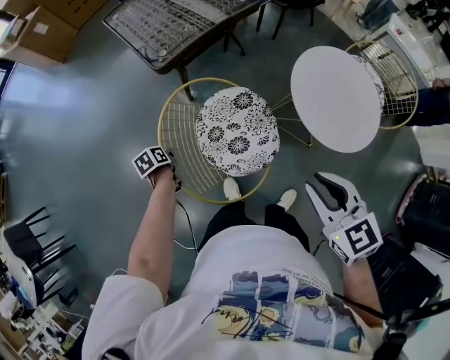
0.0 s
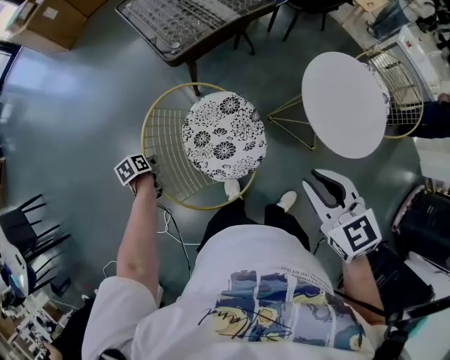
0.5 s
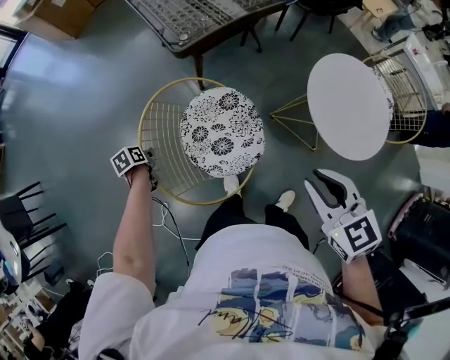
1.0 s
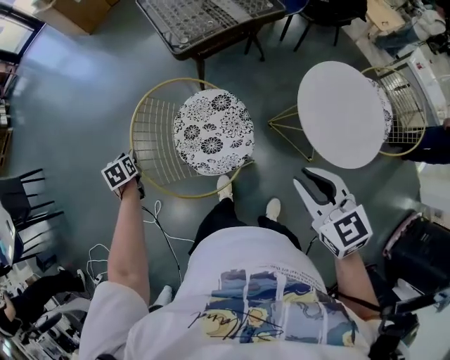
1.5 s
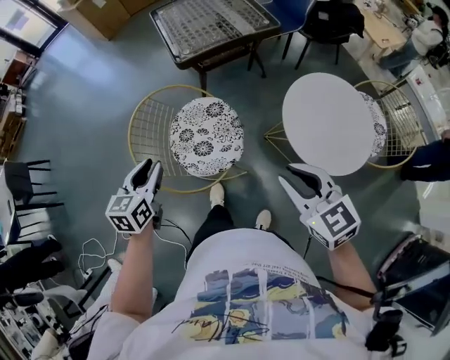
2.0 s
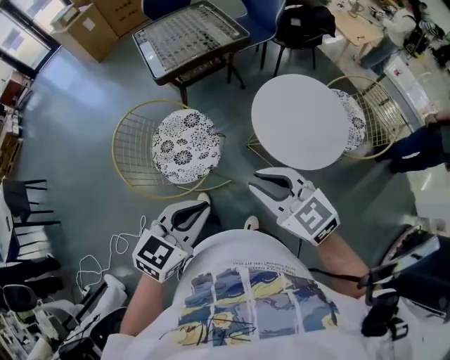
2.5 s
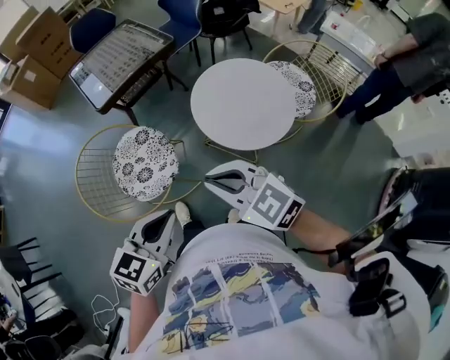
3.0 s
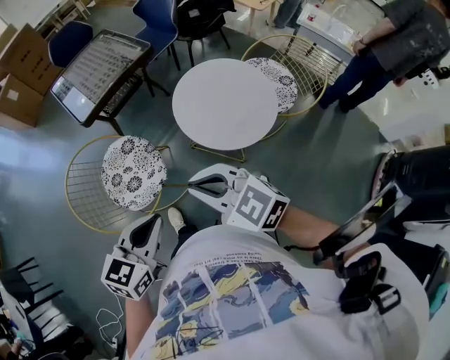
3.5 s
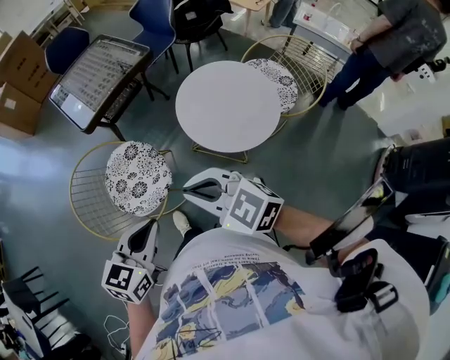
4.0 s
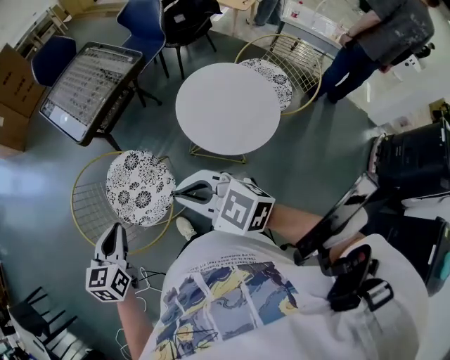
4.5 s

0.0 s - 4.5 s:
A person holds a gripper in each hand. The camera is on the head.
0.0 s - 2.0 s: The left gripper moves upward, approximately 30 cm, angles its fingers upward, by some 30 degrees, and opens up. Meanwhile the right gripper shifts by about 10 cm, and rotates roughly 20 degrees.
2.0 s - 4.5 s: The left gripper travels to the right and back again, about 30 cm each way, changes its angle by about 20 degrees, and closes its fingers.

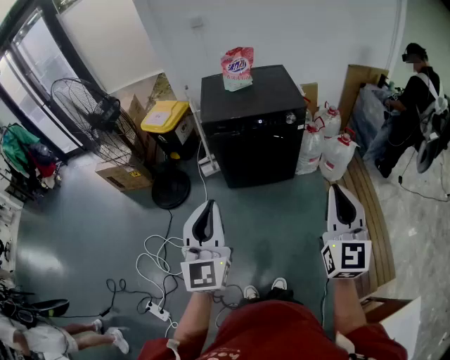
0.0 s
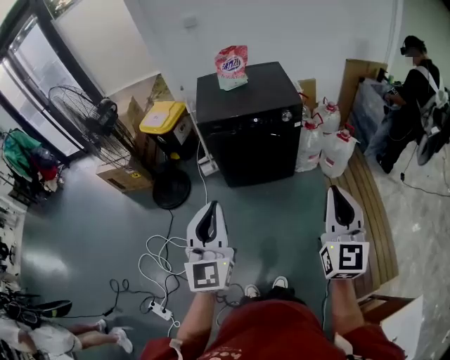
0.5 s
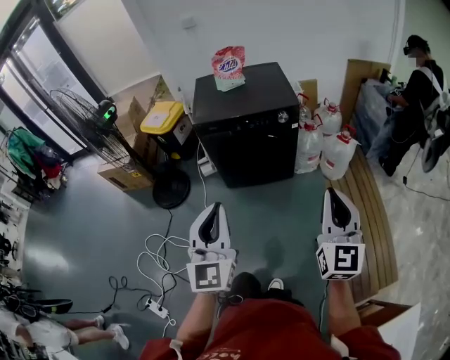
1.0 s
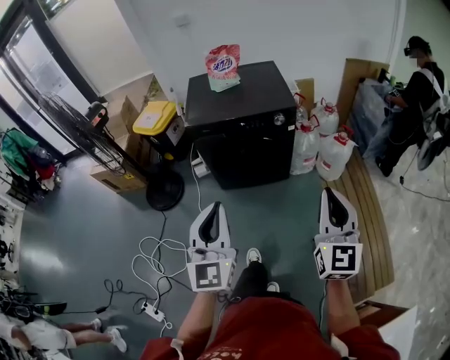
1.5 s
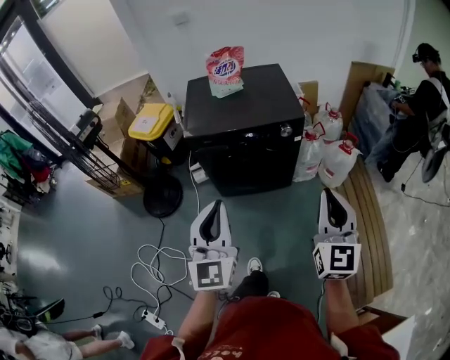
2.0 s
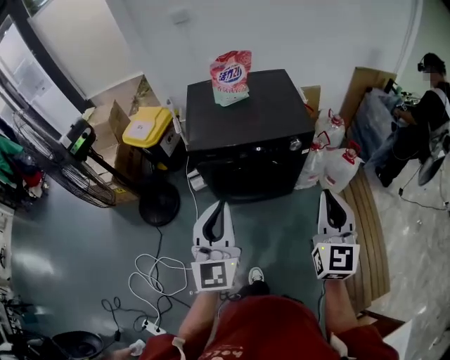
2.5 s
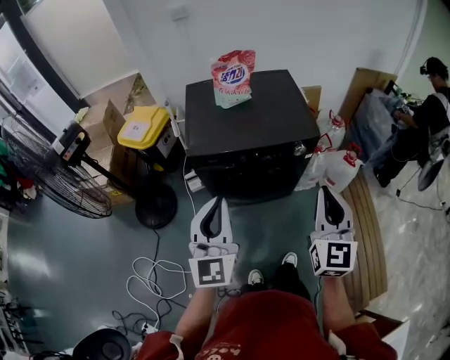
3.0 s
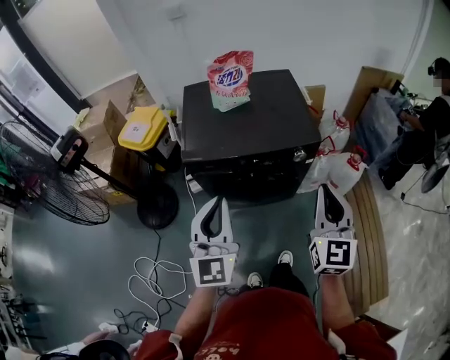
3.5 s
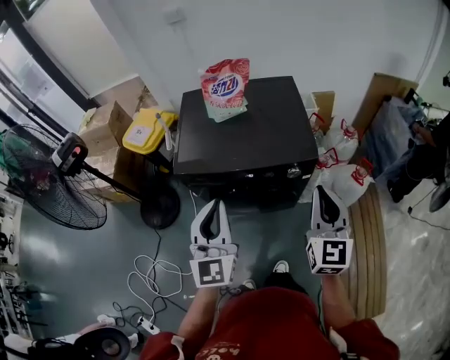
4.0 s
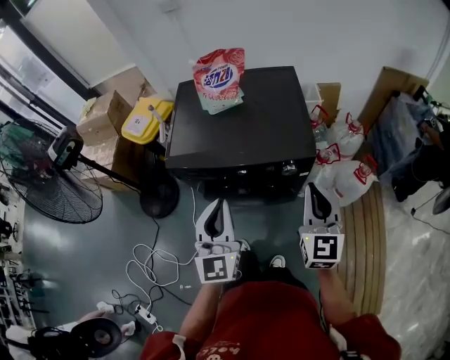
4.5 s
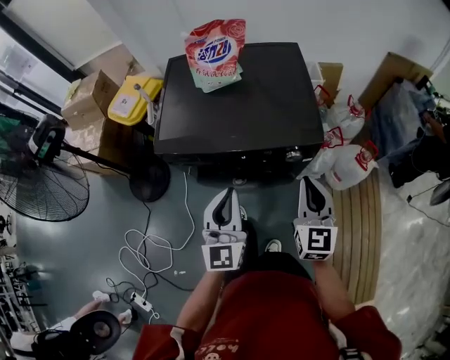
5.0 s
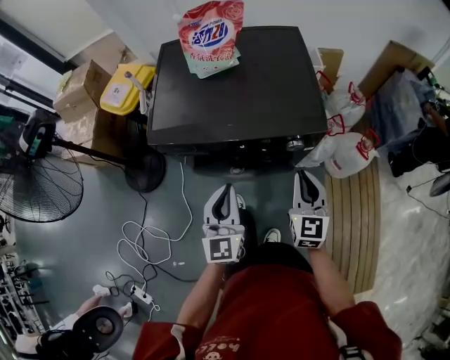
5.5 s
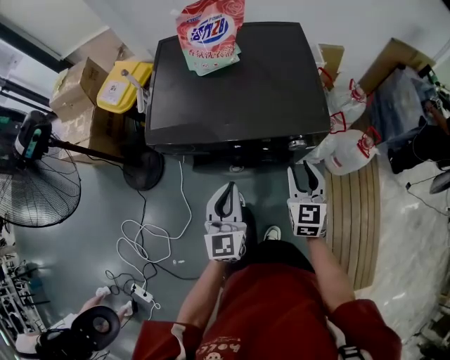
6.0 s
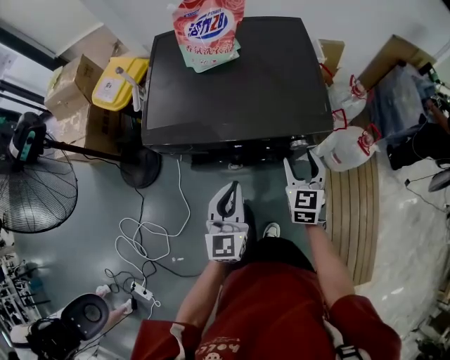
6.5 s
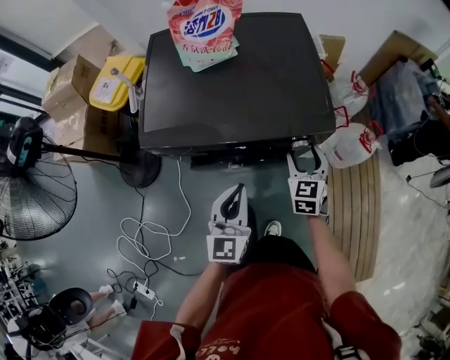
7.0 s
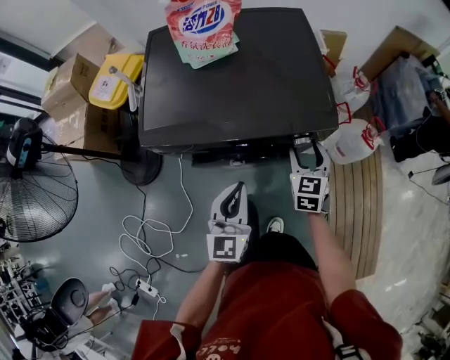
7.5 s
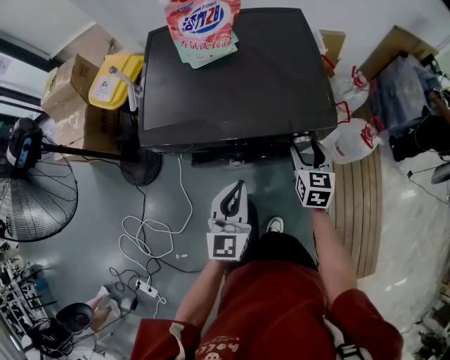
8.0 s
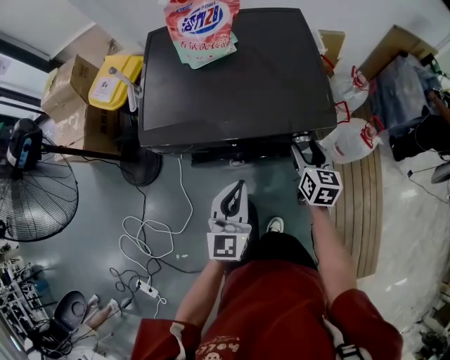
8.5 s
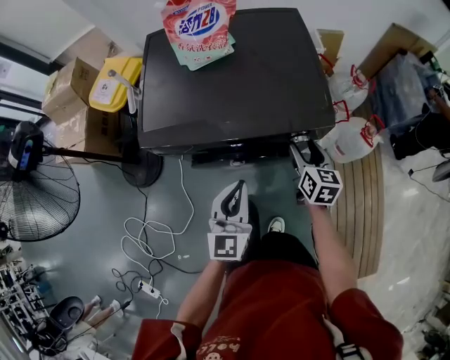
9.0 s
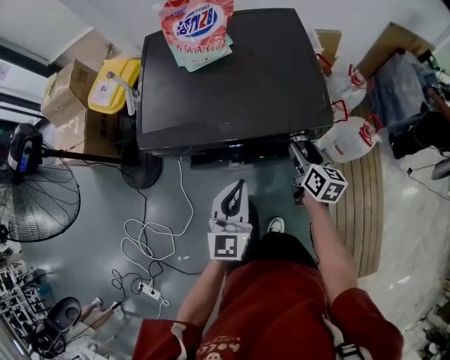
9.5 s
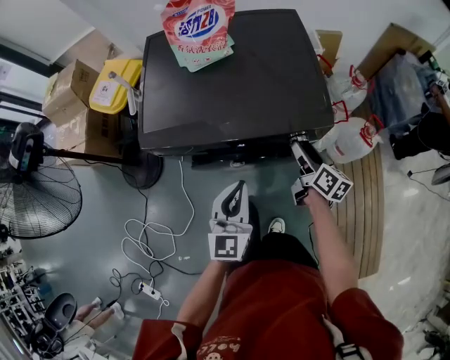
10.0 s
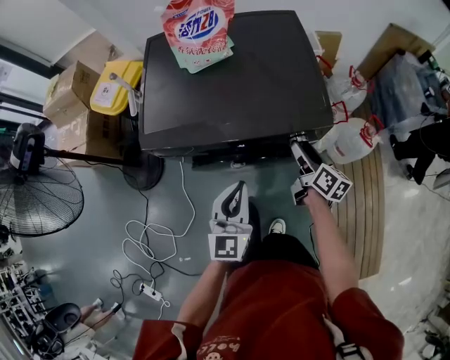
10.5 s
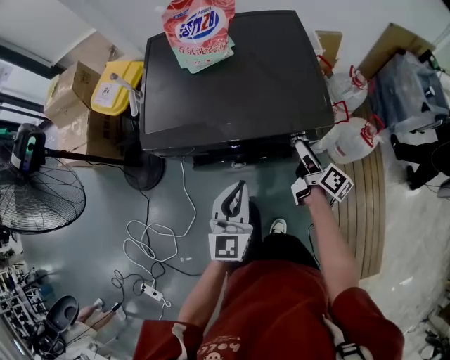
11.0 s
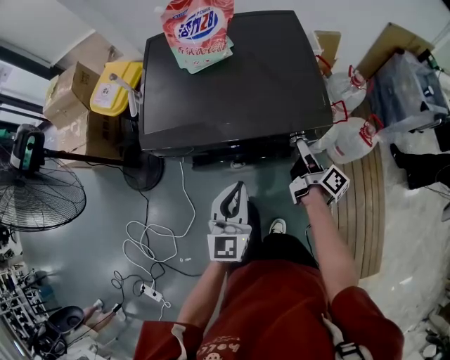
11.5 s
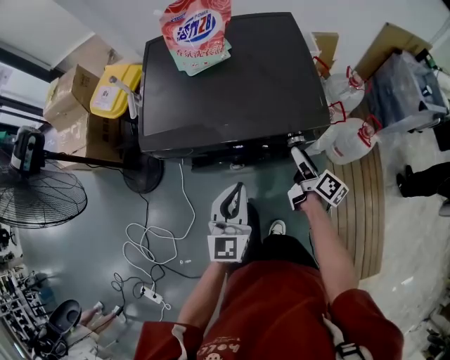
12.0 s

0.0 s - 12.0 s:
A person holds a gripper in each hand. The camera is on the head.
0.0 s - 2.0 s: The right gripper moves forward, some 20 cm; the left gripper moves forward and to the right, roughly 20 cm.
2.0 s - 4.0 s: The two grippers go some 30 cm forward.
4.0 s - 6.0 s: The left gripper moves downward, about 25 cm. The right gripper travels downward and forward by about 30 cm, and opens its fingers.
6.0 s - 8.0 s: The right gripper is displaced forward and downward by some 10 cm.
8.0 s - 10.0 s: The right gripper twists about 40 degrees clockwise, seen from behind.

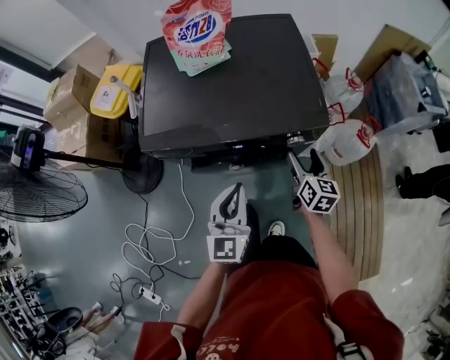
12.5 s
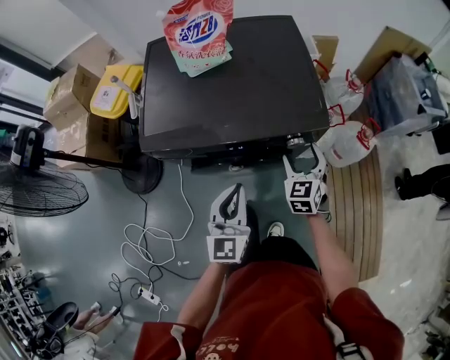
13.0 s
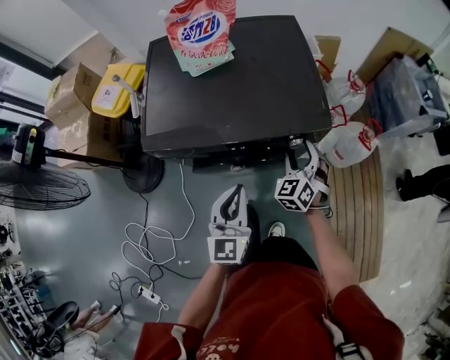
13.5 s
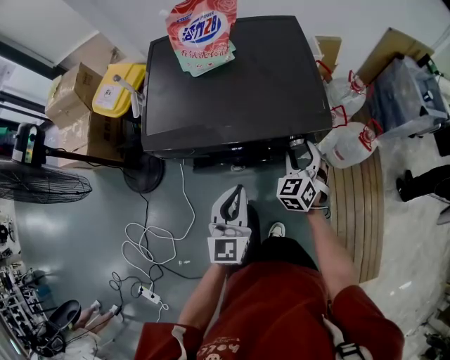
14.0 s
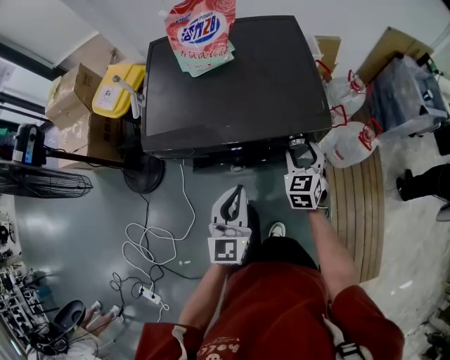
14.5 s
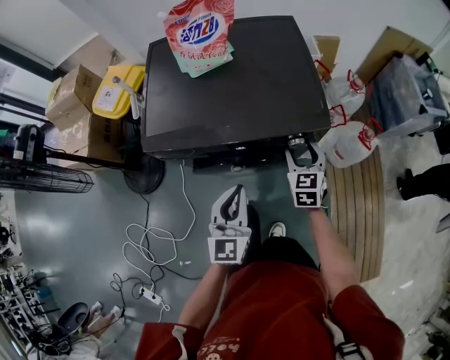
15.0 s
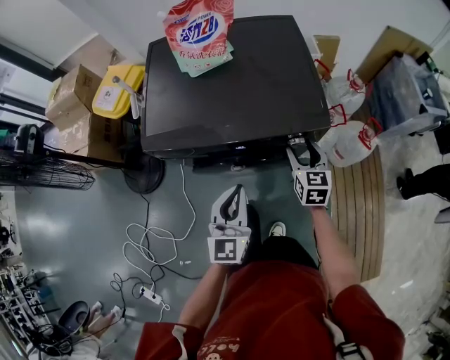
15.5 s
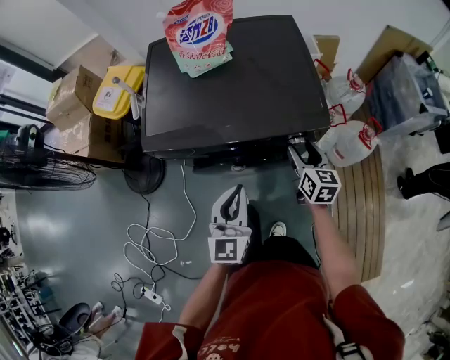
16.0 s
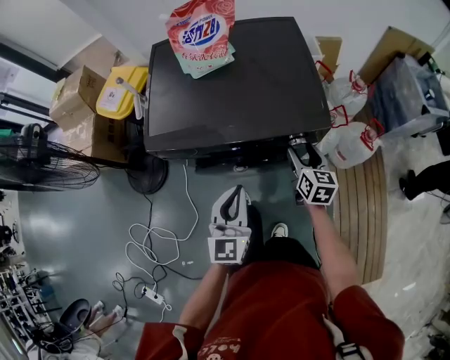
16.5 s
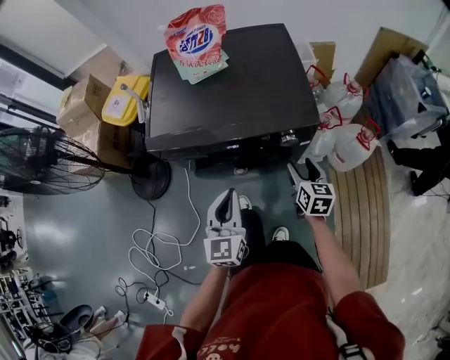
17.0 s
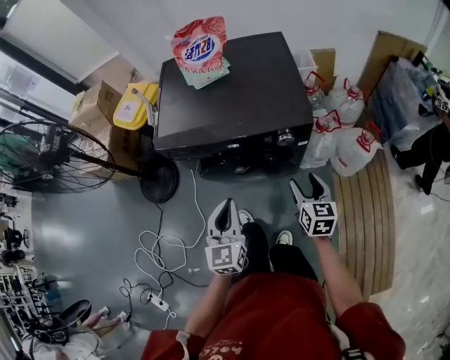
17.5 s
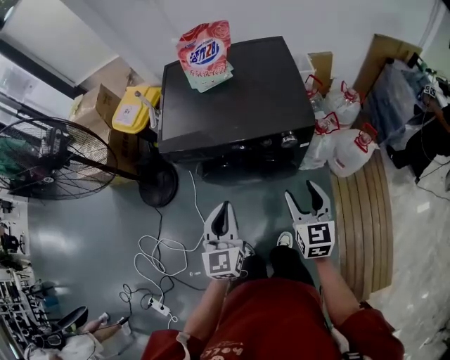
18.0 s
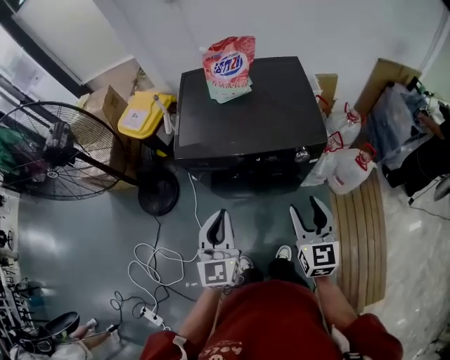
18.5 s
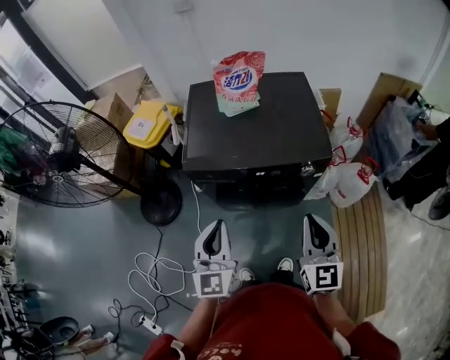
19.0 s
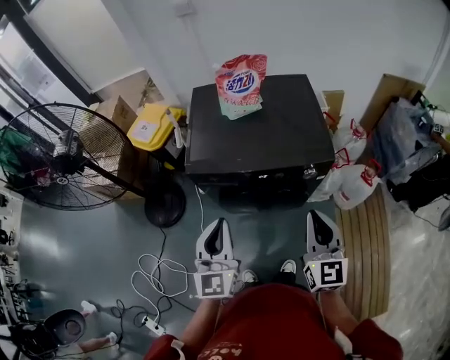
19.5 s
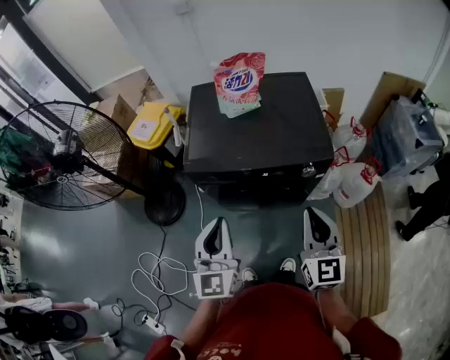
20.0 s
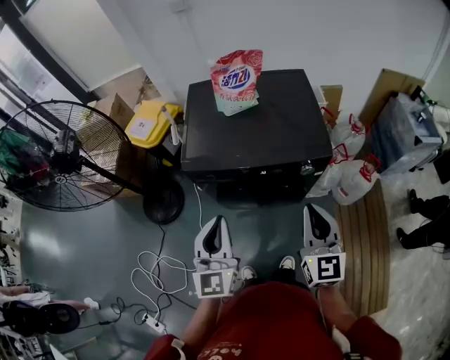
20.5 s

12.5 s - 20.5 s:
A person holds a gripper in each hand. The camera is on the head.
12.5 s - 14.5 s: The right gripper twists roughly 40 degrees counterclockwise, seen from behind.
14.5 s - 16.5 s: The right gripper rotates some 40 degrees.
16.5 s - 18.5 s: The right gripper goes approximately 30 cm backward and upward, and rotates some 20 degrees. The left gripper heads upward, backward and to the left, covering some 20 cm.
18.5 s - 20.5 s: Both grippers travel together upward, about 5 cm. The right gripper closes up.

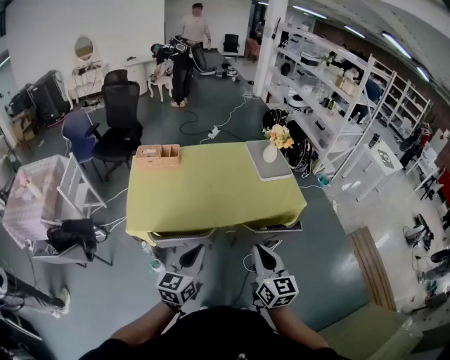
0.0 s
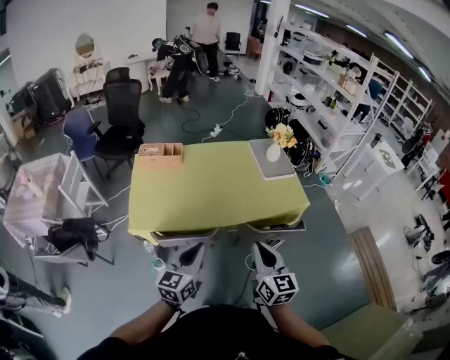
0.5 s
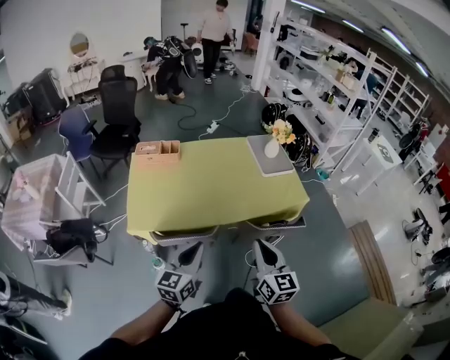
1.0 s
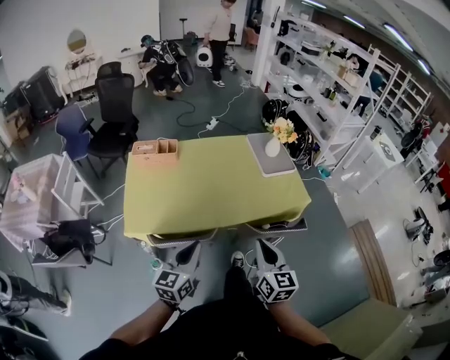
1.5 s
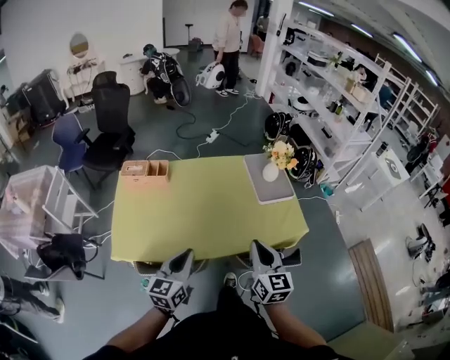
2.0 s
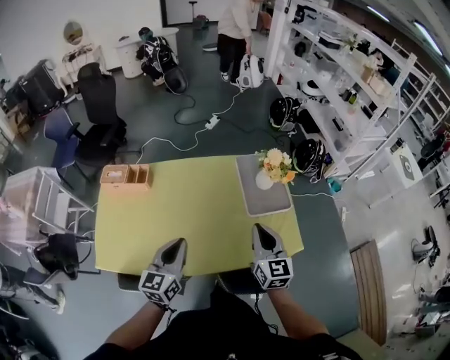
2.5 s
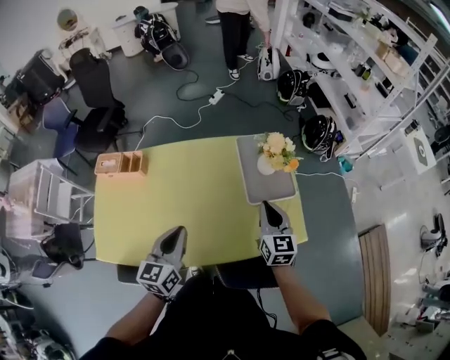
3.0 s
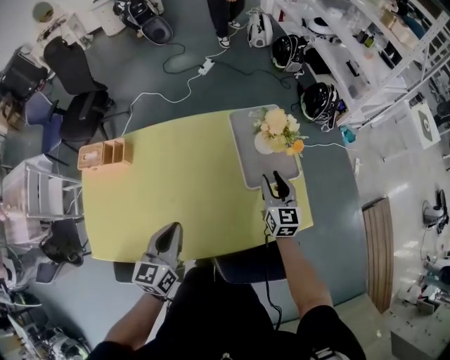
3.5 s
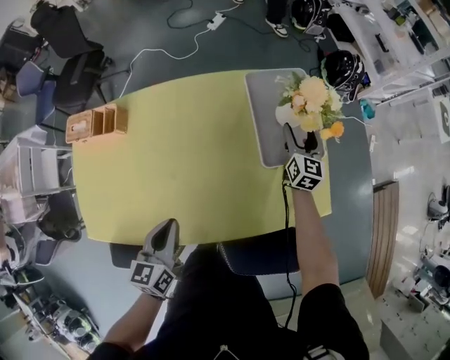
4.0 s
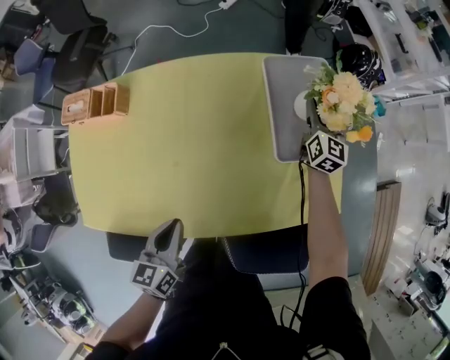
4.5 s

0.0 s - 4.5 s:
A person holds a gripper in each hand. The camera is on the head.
0.0 s - 2.0 s: The two grippers go approximately 20 cm forward.
2.0 s - 4.5 s: The right gripper is displaced forward and downward by approximately 70 cm, and opens its fingers. Meanwhile the left gripper goes roughly 35 cm forward and downward, and turns by roughly 30 degrees.
